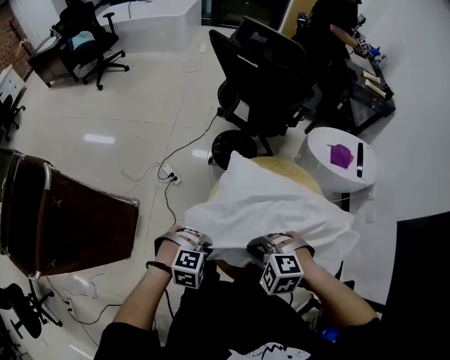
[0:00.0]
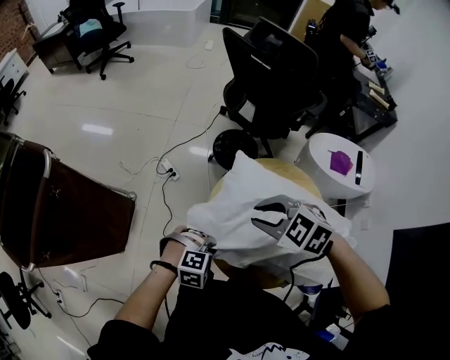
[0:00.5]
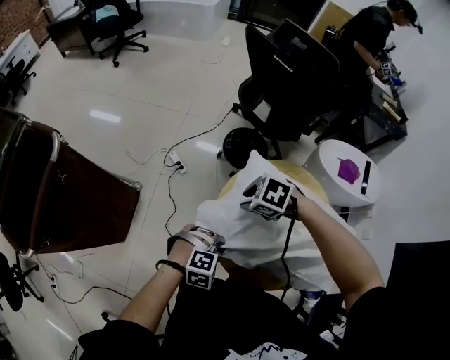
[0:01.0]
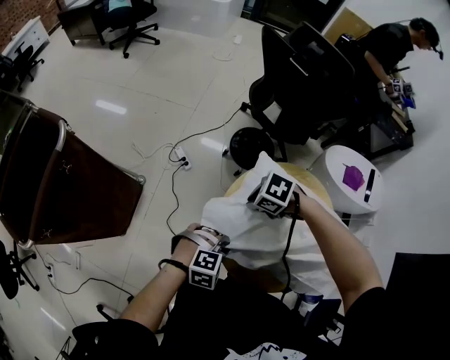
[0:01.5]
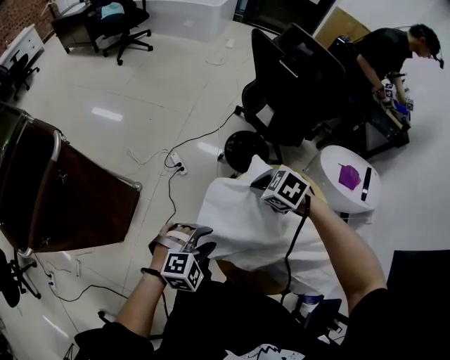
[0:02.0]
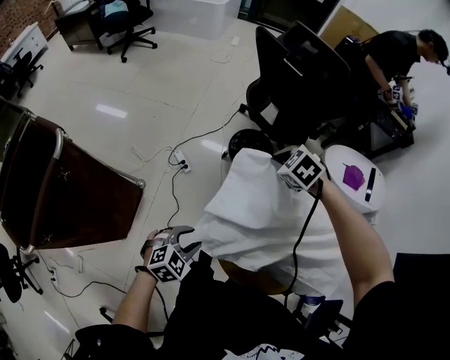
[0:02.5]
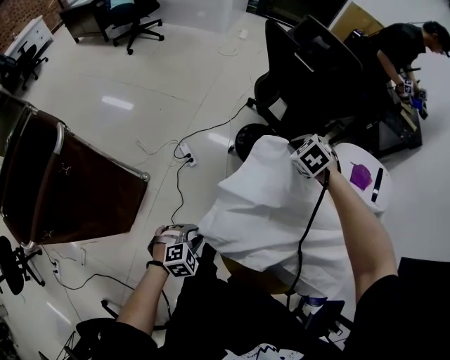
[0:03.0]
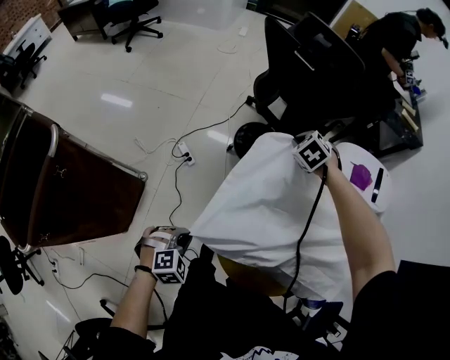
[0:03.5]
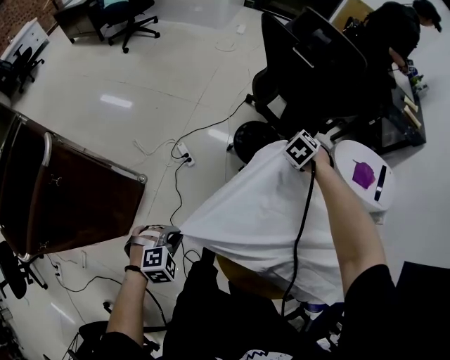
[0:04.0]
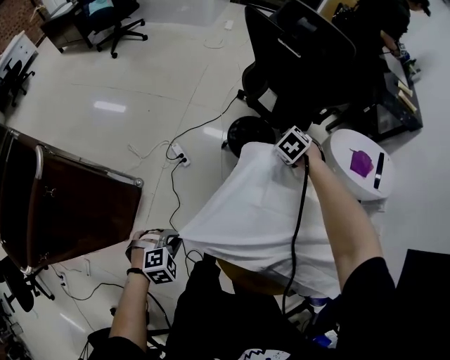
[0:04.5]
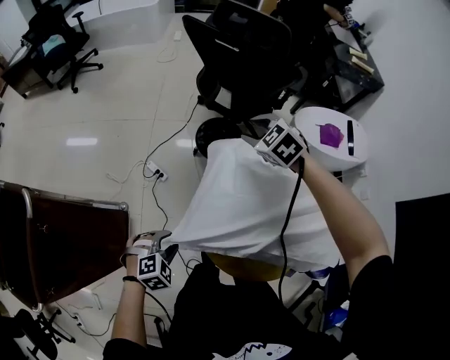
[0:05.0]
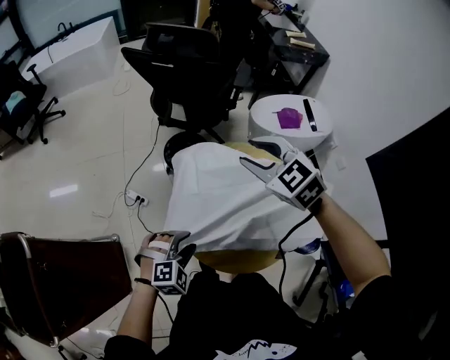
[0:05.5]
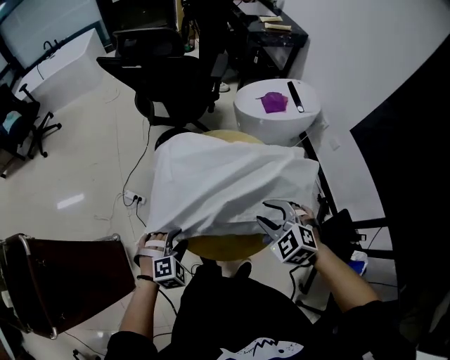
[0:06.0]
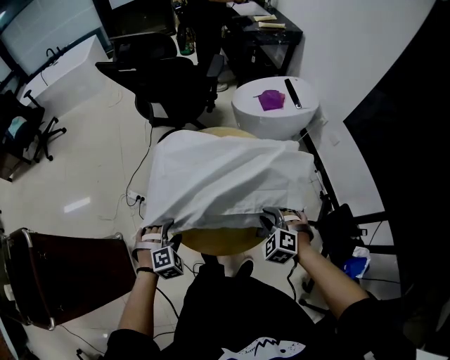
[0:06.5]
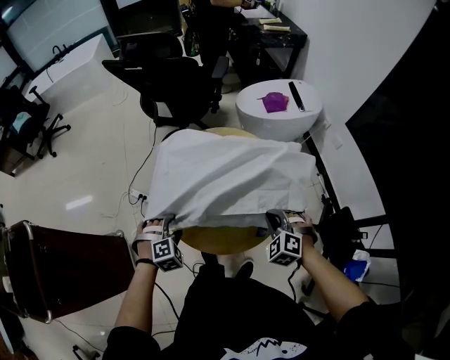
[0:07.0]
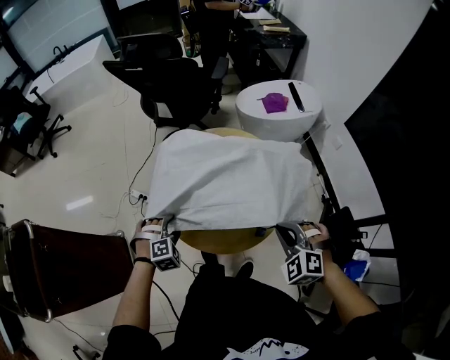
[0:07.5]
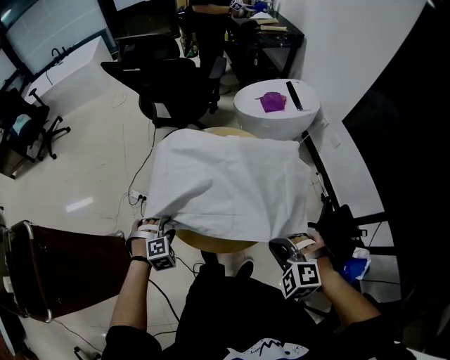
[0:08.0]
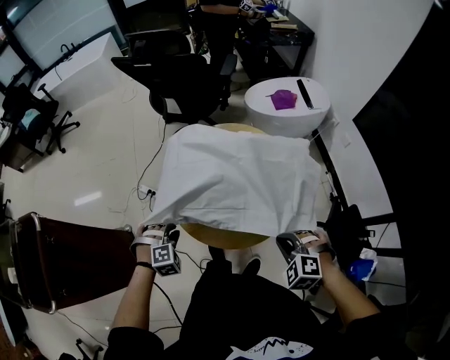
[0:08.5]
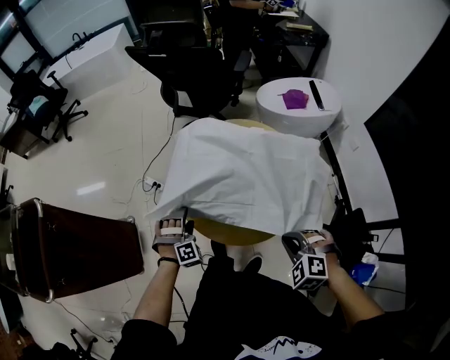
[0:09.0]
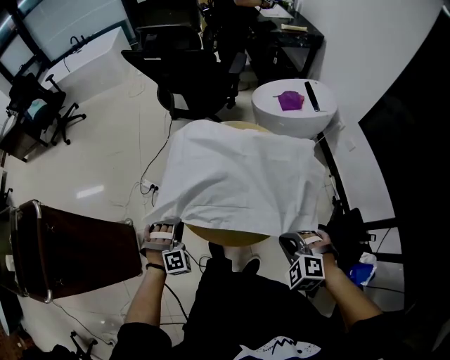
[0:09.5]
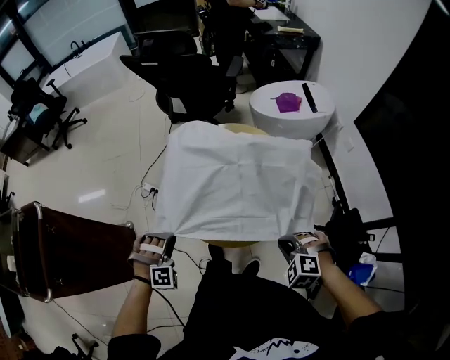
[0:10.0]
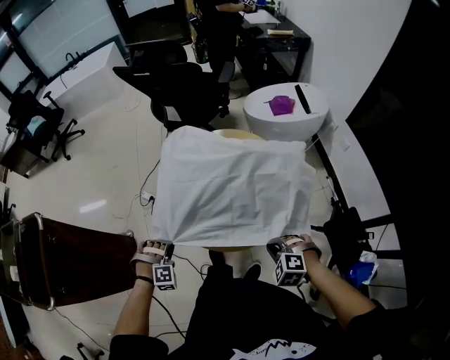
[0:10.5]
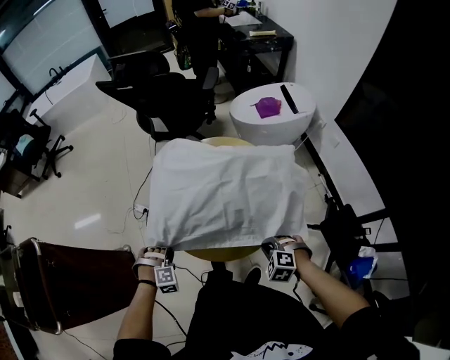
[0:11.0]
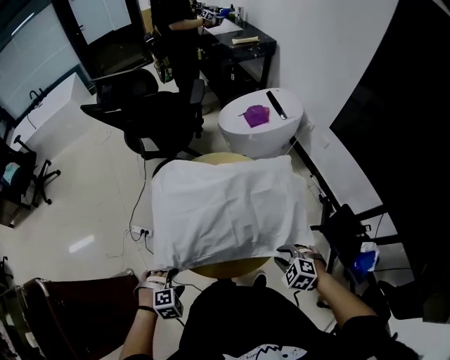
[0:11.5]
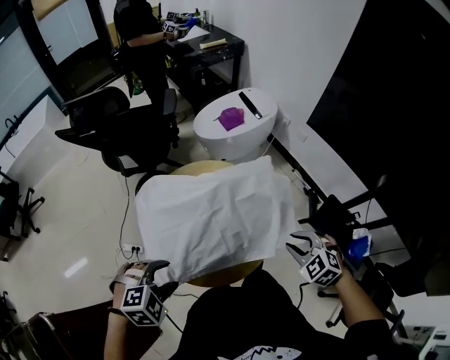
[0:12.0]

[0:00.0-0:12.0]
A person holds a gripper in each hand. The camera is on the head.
0.0 to 2.0 s: The right gripper moves up and down over approximately 15 cm, changing direction 2 times, rotates about 20 degrees, and opens, then closes again. Meanwhile the left gripper moves roughly 5 cm, swivels some 30 degrees, and opens its fingers.
2.0 to 4.0 s: The left gripper moves some 15 cm, and closes up. Meanwhile the right gripper shifts by some 25 cm, and changes its angle by about 30 degrees.
4.0 to 6.0 s: The right gripper heads backward and to the right, covering roughly 50 cm, turns by about 30 degrees, and opens; the left gripper goes approximately 20 cm to the right, swivels about 30 degrees, and opens up.
6.0 to 8.0 s: The right gripper heads backward, covering roughly 15 cm, and closes its fingers.
8.0 to 10.0 s: The left gripper shifts approximately 10 cm backward, rotates approximately 20 degrees, and closes its fingers; the right gripper shifts approximately 5 cm downward.
10.0 to 12.0 s: The left gripper goes approximately 10 cm upward, turns by some 40 degrees, and opens up. The right gripper moves approximately 10 cm, rotates some 40 degrees, and opens up.

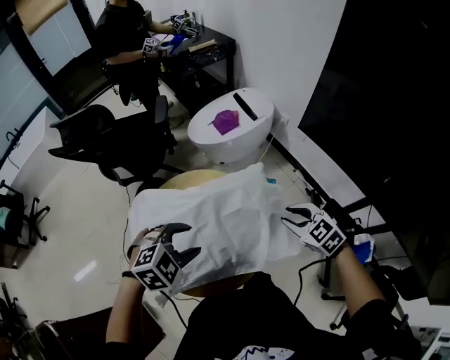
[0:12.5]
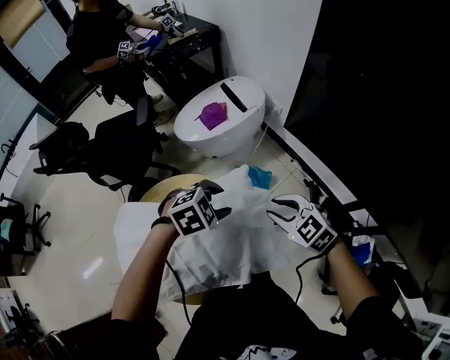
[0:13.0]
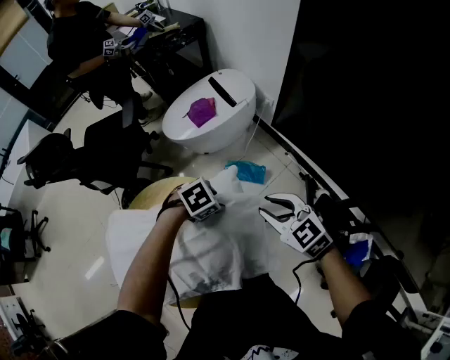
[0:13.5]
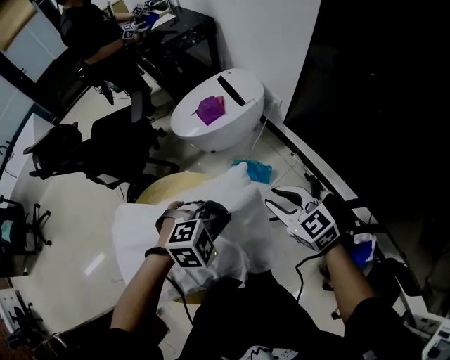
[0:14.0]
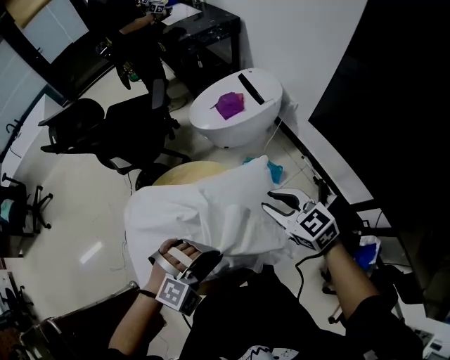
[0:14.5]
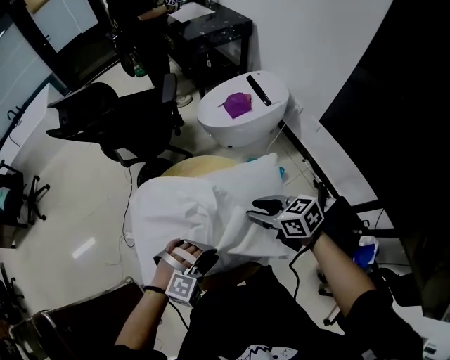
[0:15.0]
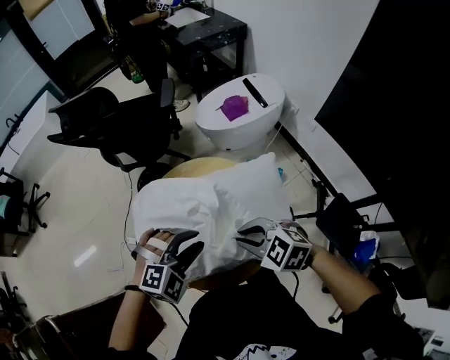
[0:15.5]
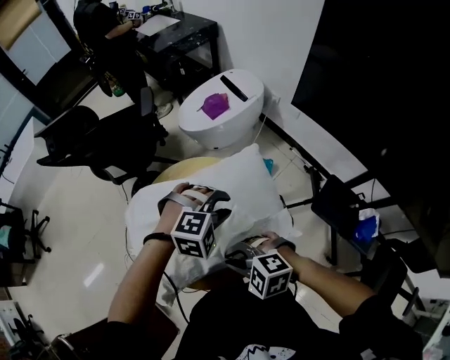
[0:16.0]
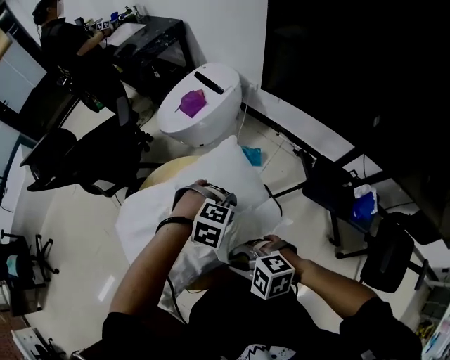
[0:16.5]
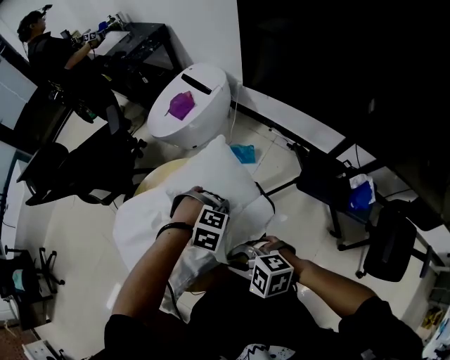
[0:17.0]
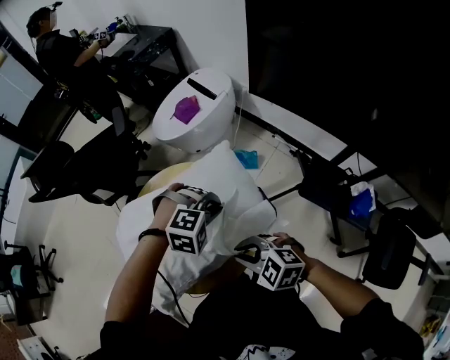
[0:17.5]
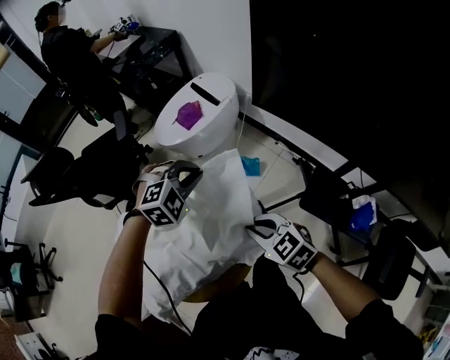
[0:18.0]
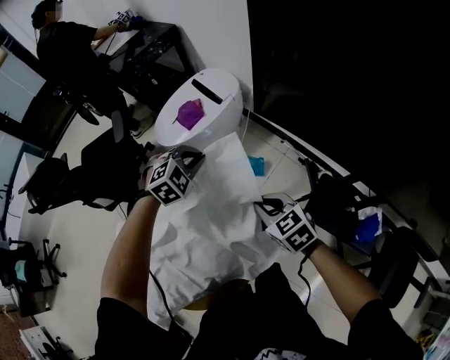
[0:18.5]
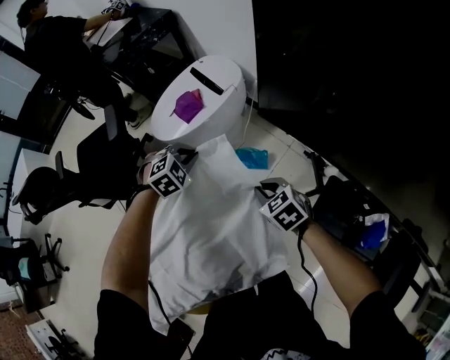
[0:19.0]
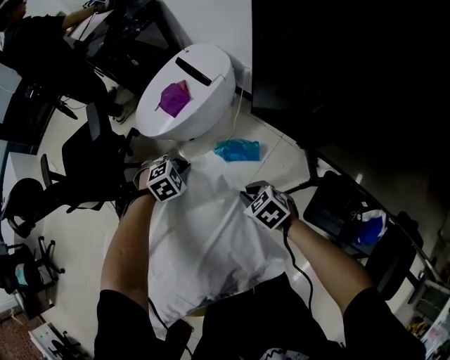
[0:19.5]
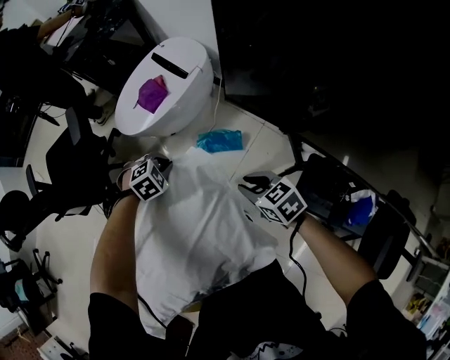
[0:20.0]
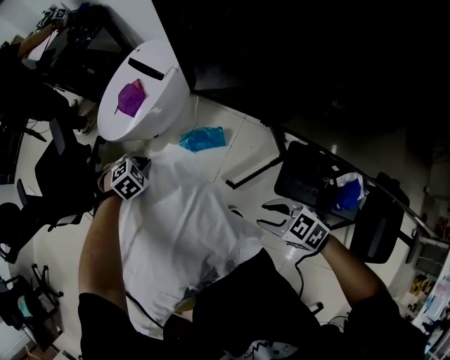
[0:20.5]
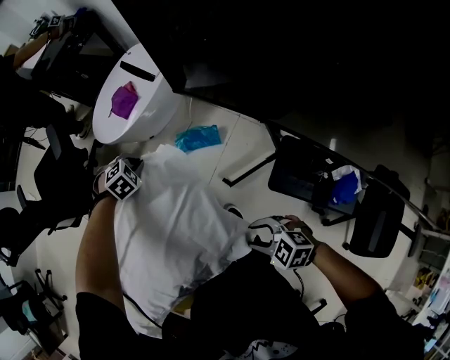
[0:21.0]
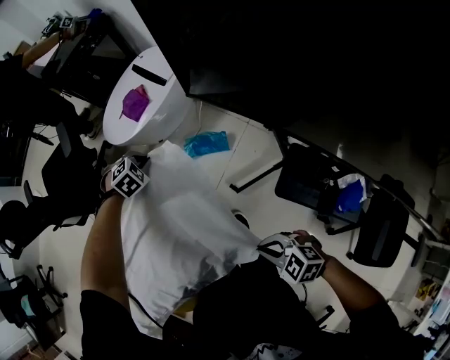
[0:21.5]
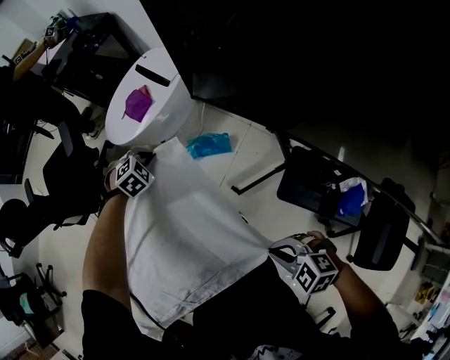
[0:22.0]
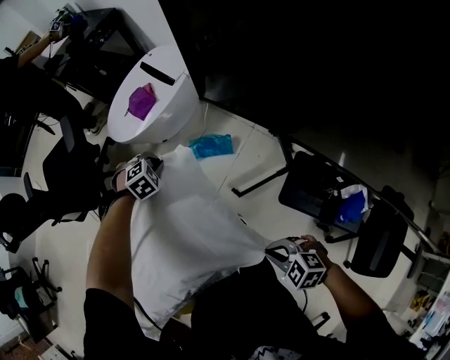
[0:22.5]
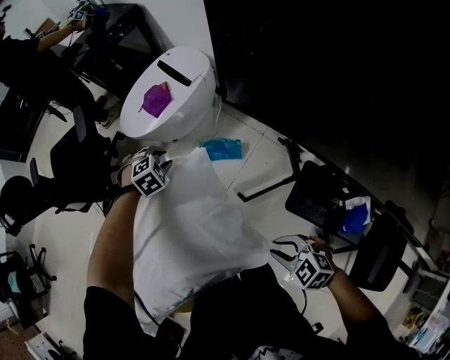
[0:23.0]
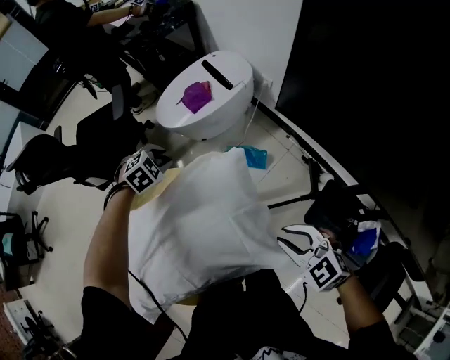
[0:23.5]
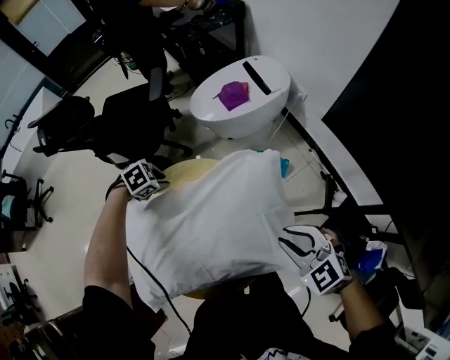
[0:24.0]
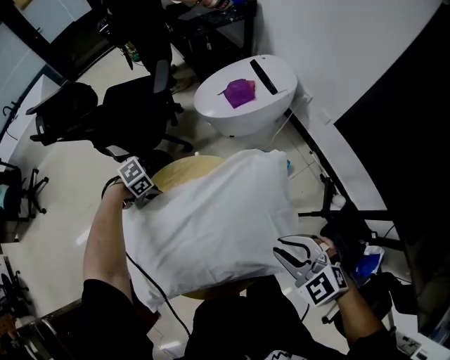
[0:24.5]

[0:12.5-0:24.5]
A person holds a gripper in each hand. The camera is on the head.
12.5 to 14.5 s: The right gripper changes place by approximately 10 cm, while the left gripper moves some 15 cm downward and comes back, turns by some 30 degrees, and closes up.
14.5 to 16.5 s: The left gripper swings up and down, roughly 10 cm each way, with 2 reversals, changes its angle by approximately 40 degrees, and opens its fingers, while the right gripper moves approximately 25 cm, and rotates about 30 degrees.
16.5 to 18.5 s: The right gripper shifts by about 30 cm, and swivels some 50 degrees, while the left gripper changes place by some 30 cm, changes its angle by roughly 50 degrees, and closes.
18.5 to 20.5 s: The left gripper travels downward by roughly 20 cm, and turns by about 20 degrees. The right gripper is displaced downward, to the right and backward by roughly 15 cm, and opens.
20.5 to 22.5 s: The right gripper shifts about 10 cm backward, rotates some 30 degrees, and closes up.
22.5 to 24.5 s: The left gripper reaches roughly 10 cm upward, then returns, and rotates around the line of its fingers by some 50 degrees, counterclockwise from behind. Meanwhile the right gripper shifts by some 25 cm, rotates about 30 degrees, and opens.

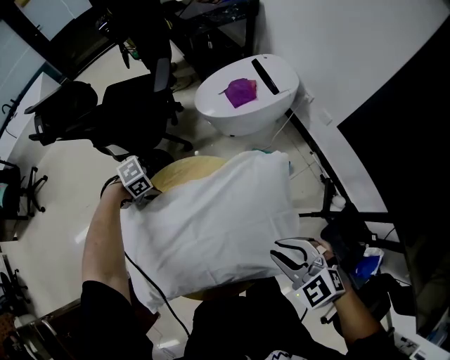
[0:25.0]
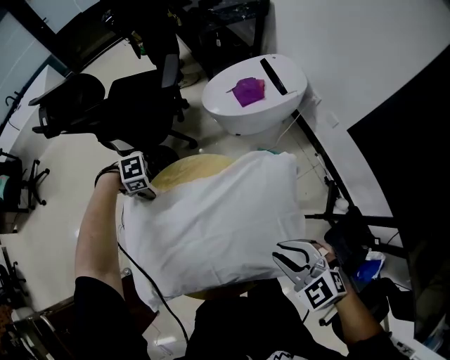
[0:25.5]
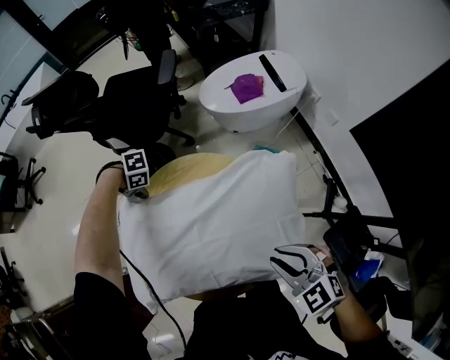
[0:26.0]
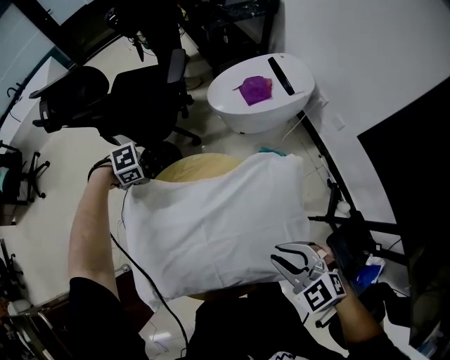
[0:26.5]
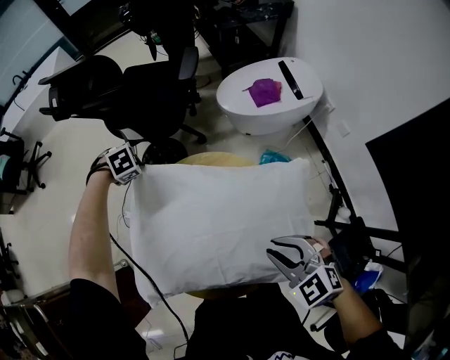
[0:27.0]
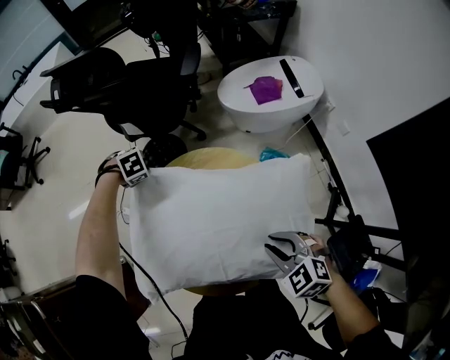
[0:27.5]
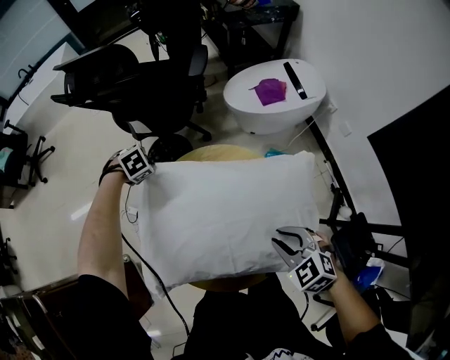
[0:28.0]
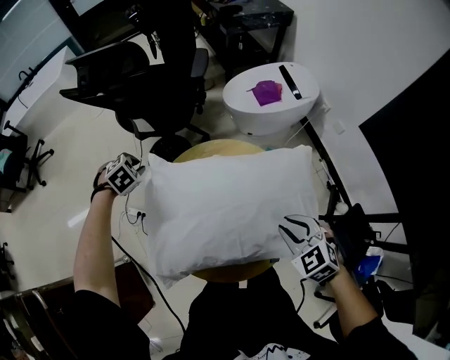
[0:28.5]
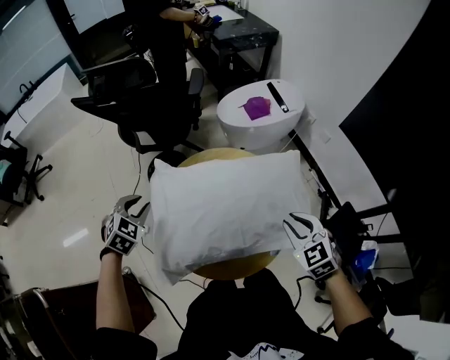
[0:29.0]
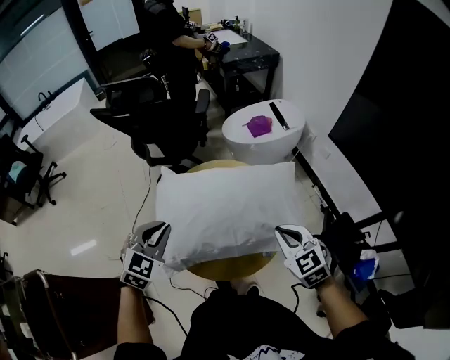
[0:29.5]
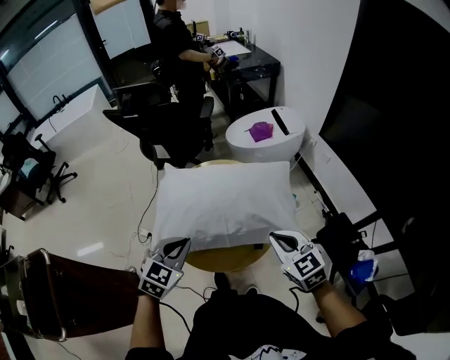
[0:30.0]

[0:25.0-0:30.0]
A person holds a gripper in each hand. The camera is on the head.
25.0 to 27.5 s: The left gripper moves approximately 15 cm, turns by some 30 degrees, and opens, then closes again; the right gripper shifts by about 10 cm.
27.5 to 30.0 s: The right gripper shifts by roughly 20 cm, rotates some 30 degrees, and closes up; the left gripper changes place by about 50 cm, tips its fingers upward by some 50 degrees, and opens, then closes once more.
